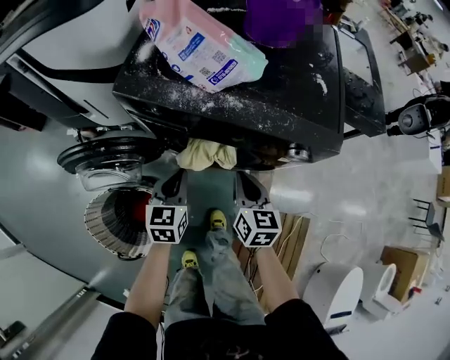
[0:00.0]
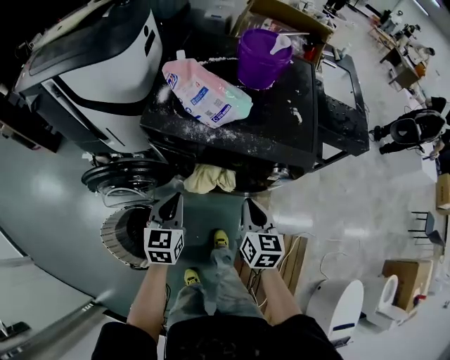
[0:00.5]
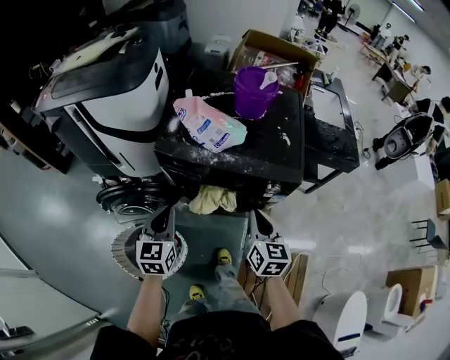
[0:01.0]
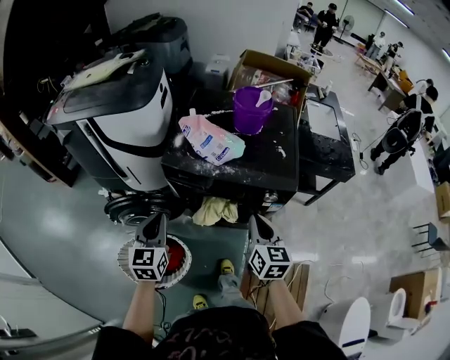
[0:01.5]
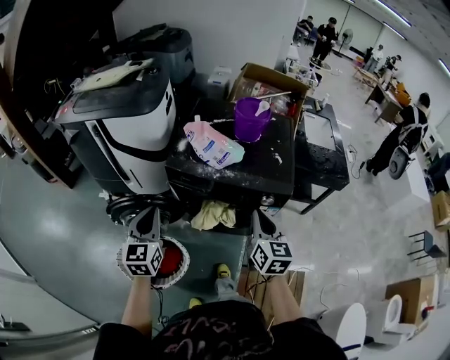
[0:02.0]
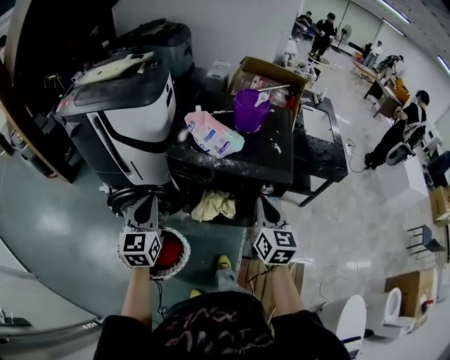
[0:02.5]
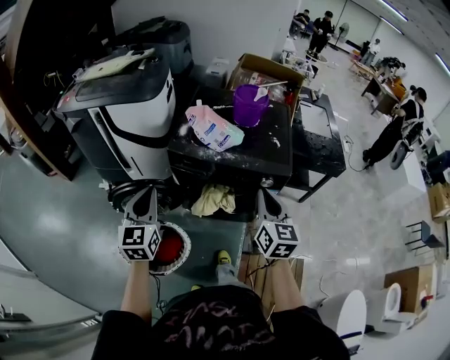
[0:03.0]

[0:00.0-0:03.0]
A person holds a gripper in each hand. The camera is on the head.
0:00.0 to 0:01.5: The grippers both shift upward by approximately 25 cm.
0:01.5 to 0:03.0: Both grippers move upward, about 10 cm.

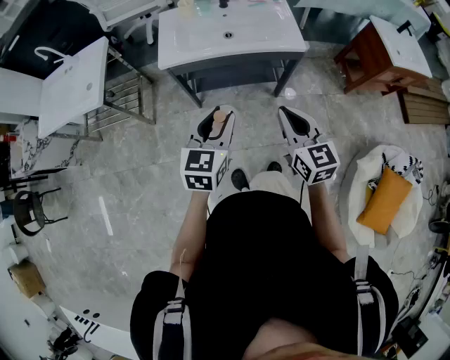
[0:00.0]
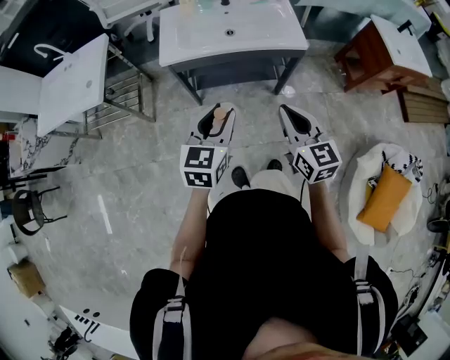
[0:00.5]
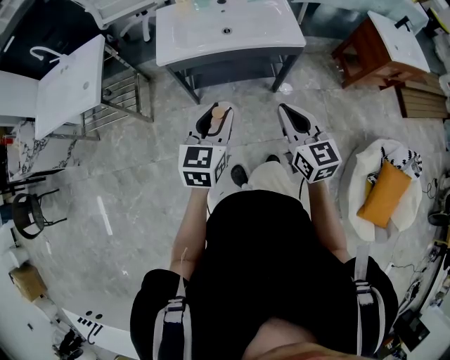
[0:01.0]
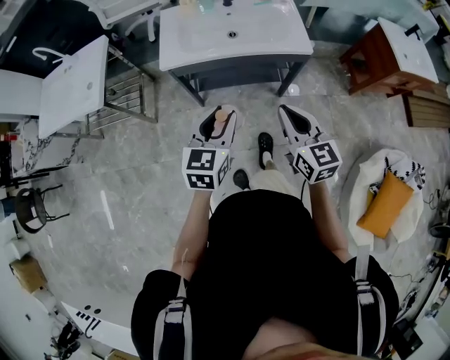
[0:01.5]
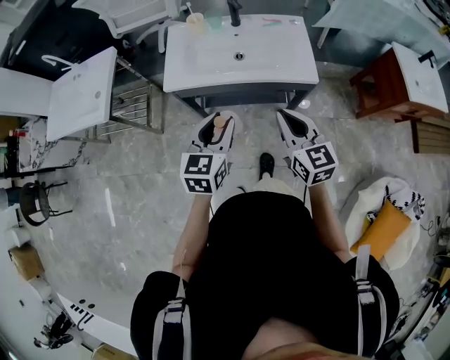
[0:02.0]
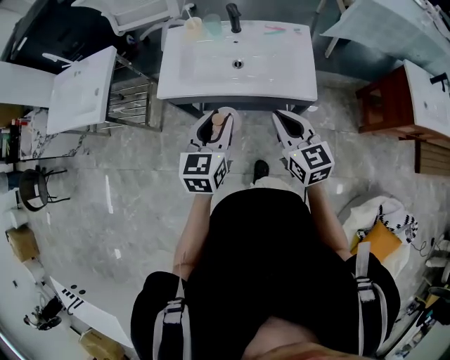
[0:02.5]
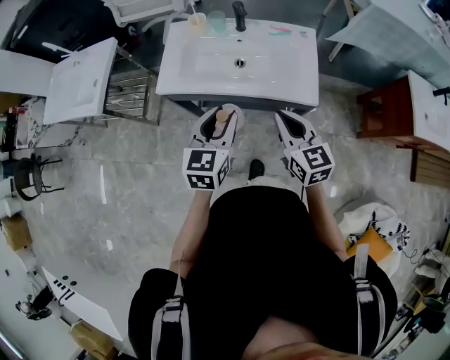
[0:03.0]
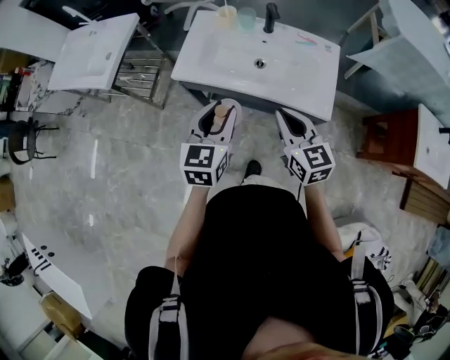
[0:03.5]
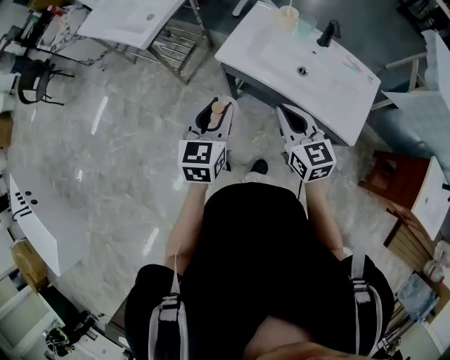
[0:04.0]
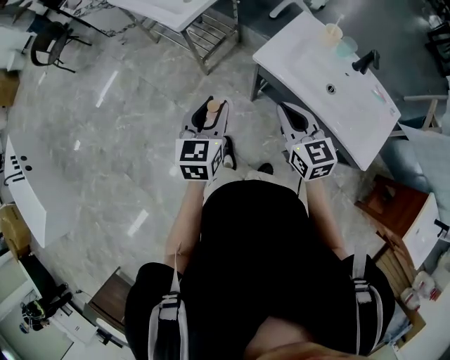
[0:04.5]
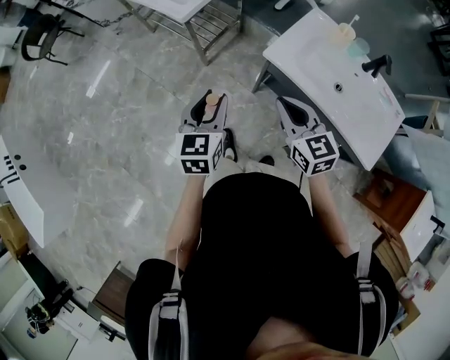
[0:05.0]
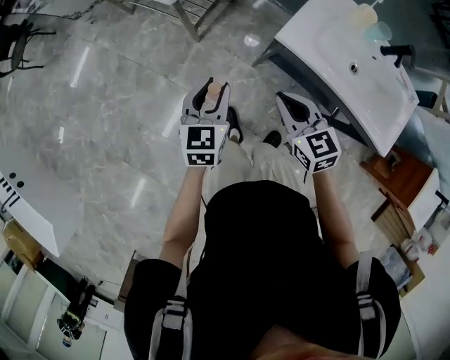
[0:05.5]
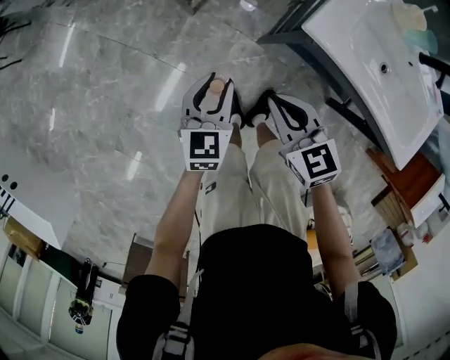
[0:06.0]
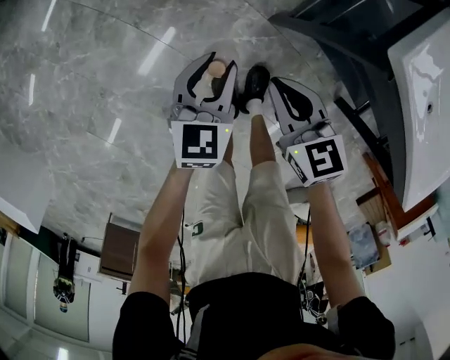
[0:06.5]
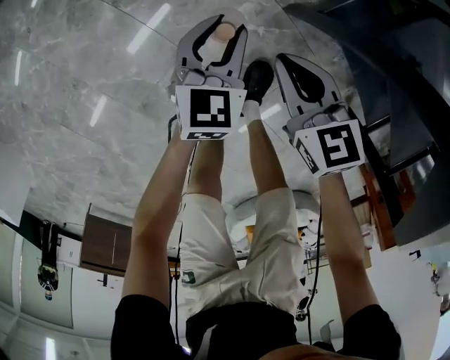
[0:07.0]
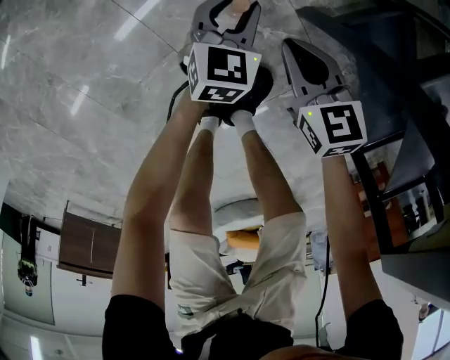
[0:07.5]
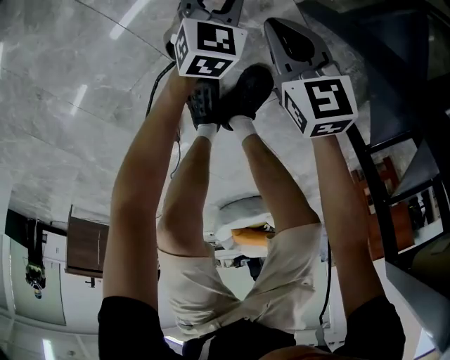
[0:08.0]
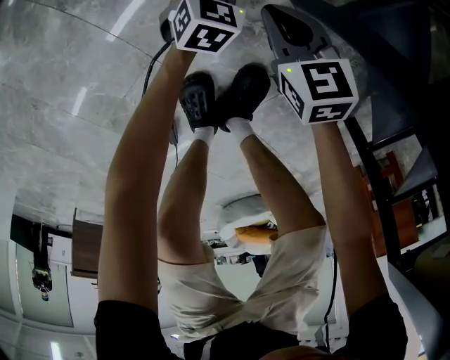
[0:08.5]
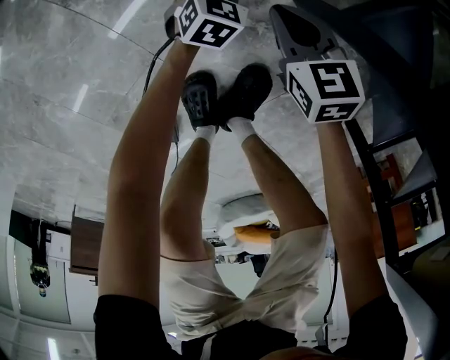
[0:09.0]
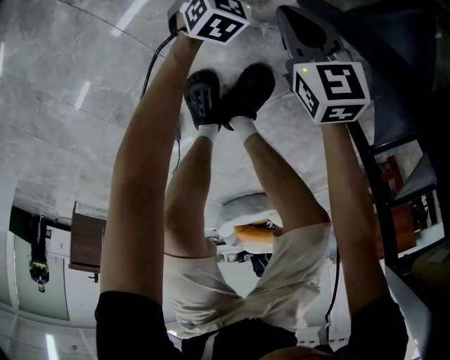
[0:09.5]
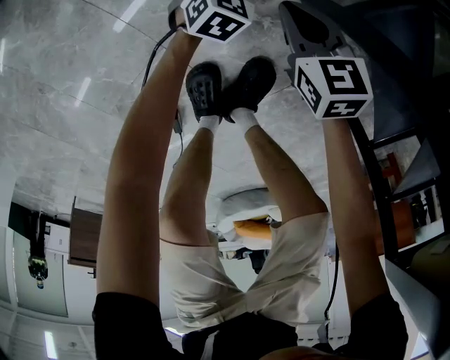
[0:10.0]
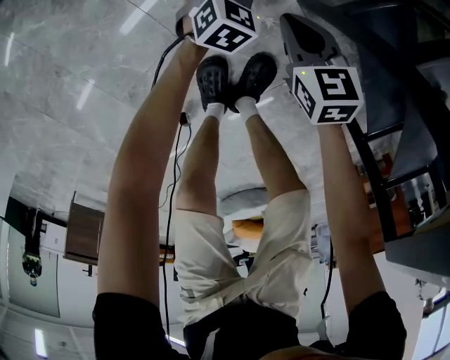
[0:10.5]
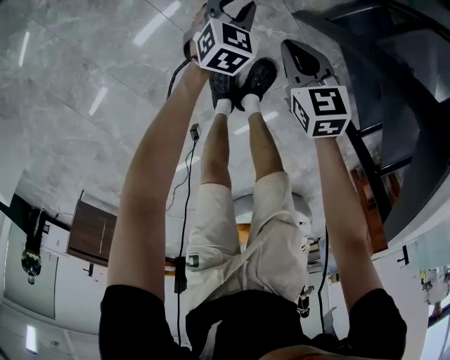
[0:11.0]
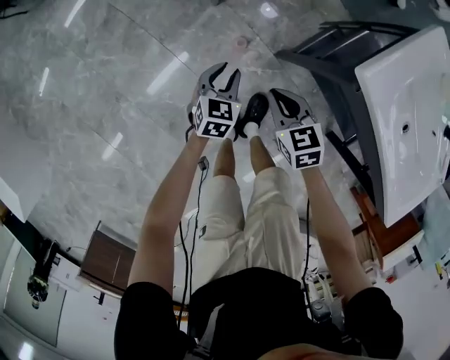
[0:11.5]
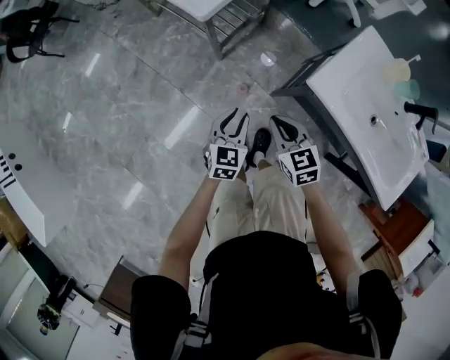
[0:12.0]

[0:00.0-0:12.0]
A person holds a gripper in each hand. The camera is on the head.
0:00.0 to 0:02.0: Both grippers move forward, roughly 15 cm.
0:02.0 to 0:04.0: The right gripper moves about 15 cm, and turns by roughly 30 degrees. The left gripper ends up approximately 15 cm from where it was, and rotates about 30 degrees.
0:04.0 to 0:06.0: The left gripper shifts some 40 cm downward, to the left and forward; the right gripper moves to the left, downward and forward, some 40 cm, and rotates some 30 degrees.
0:06.0 to 0:08.0: The two grippers go roughly 70 cm downward.
0:08.0 to 0:10.0: The left gripper shifts about 5 cm downward.
0:10.0 to 0:12.0: Both grippers travel together upward, roughly 70 cm. The left gripper turns by about 20 degrees.

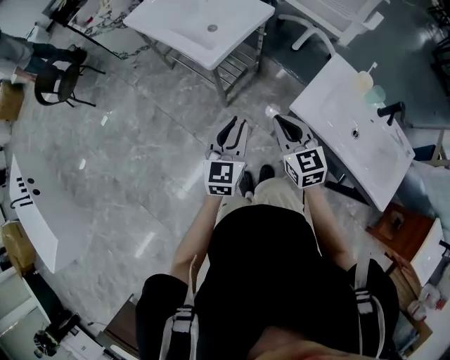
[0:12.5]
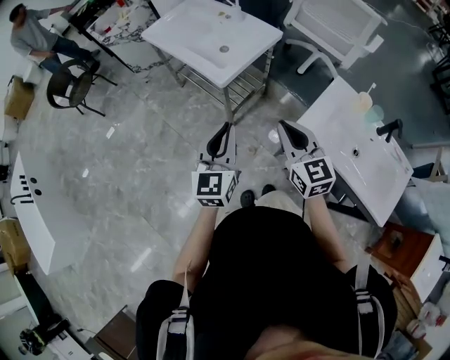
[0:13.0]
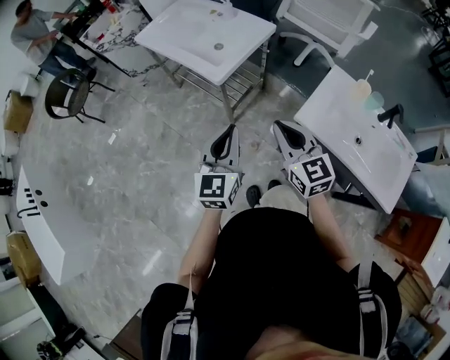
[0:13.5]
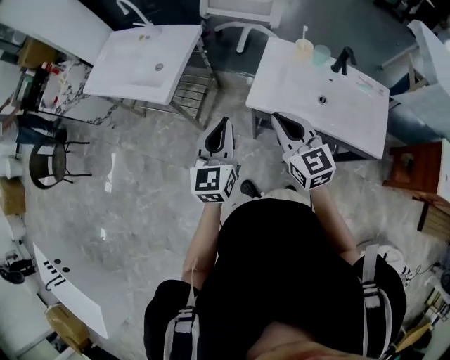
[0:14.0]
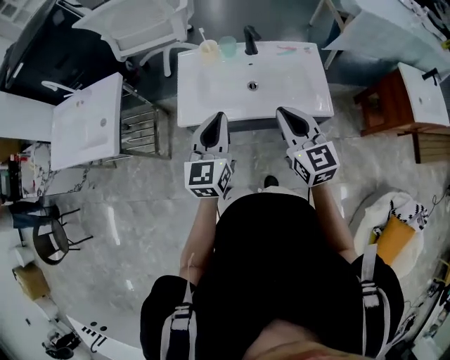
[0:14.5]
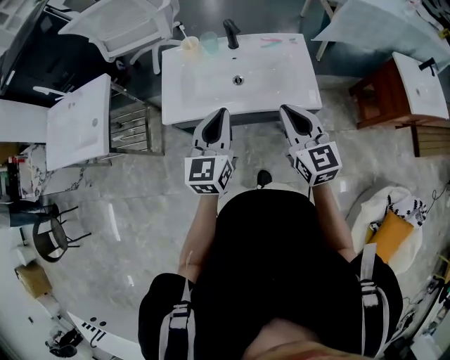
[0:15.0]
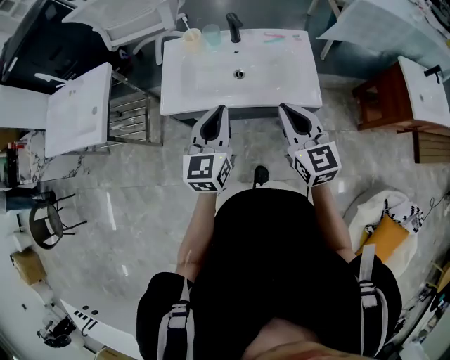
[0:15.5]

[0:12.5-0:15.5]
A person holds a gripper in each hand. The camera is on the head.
0:12.5 to 0:14.0: The right gripper heads to the right and backward, covering about 20 cm, and changes its angle by about 20 degrees, while the left gripper is displaced to the right by about 15 cm.
0:14.0 to 0:15.5: The right gripper moves approximately 35 cm, and swivels about 30 degrees. Meanwhile the left gripper moves roughly 35 cm, and turns by roughly 20 degrees.

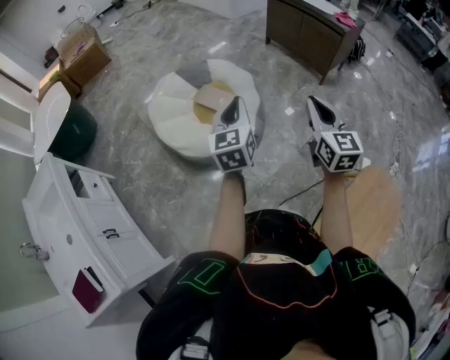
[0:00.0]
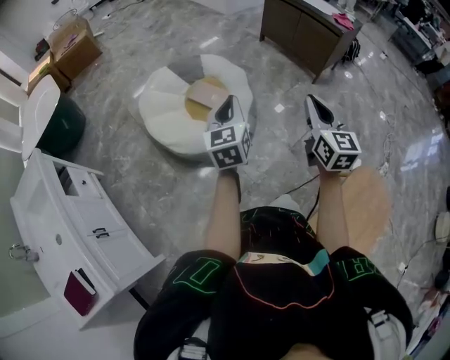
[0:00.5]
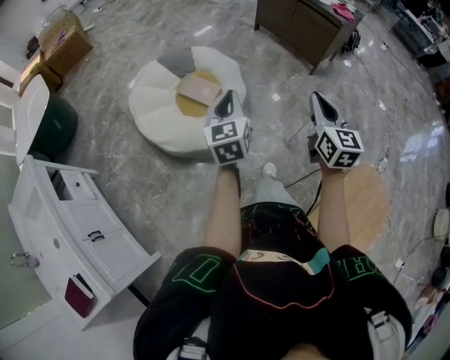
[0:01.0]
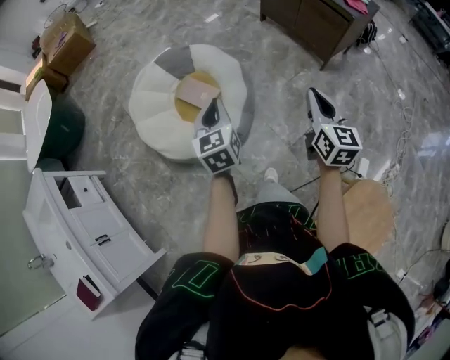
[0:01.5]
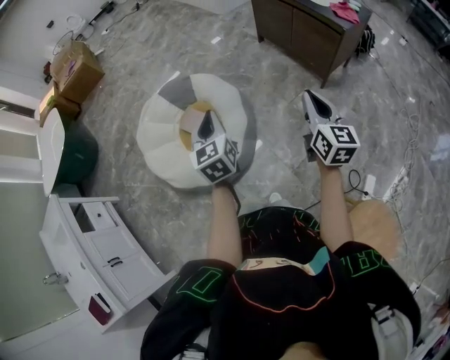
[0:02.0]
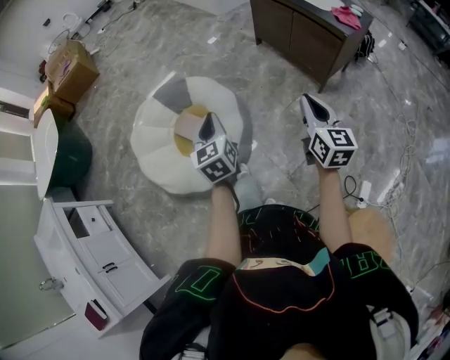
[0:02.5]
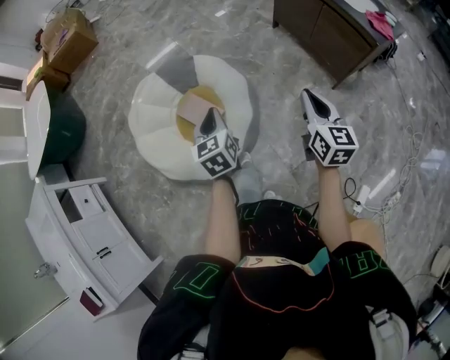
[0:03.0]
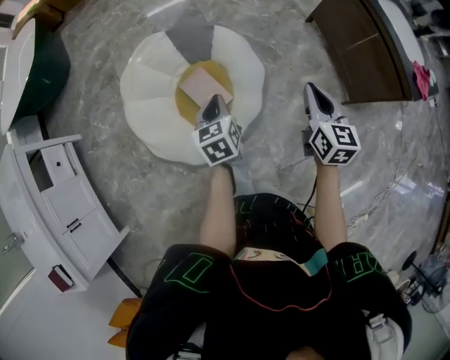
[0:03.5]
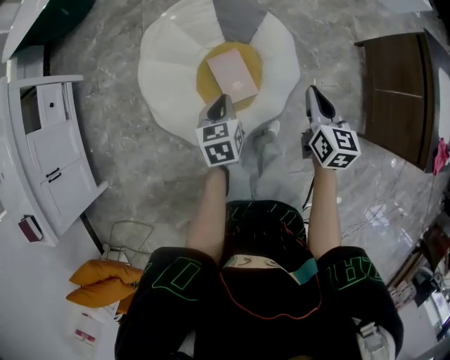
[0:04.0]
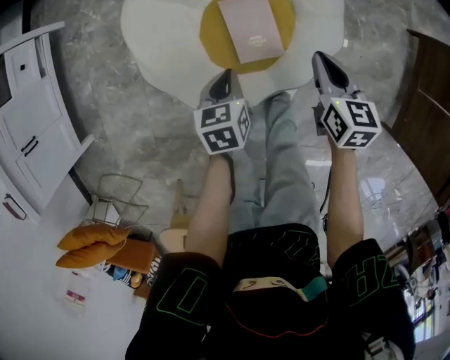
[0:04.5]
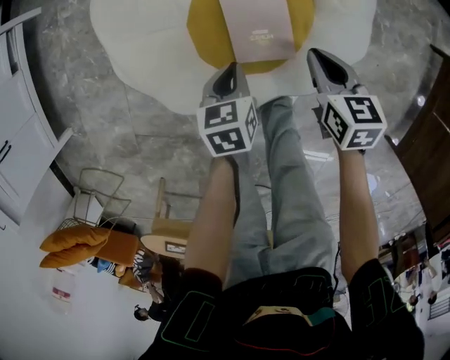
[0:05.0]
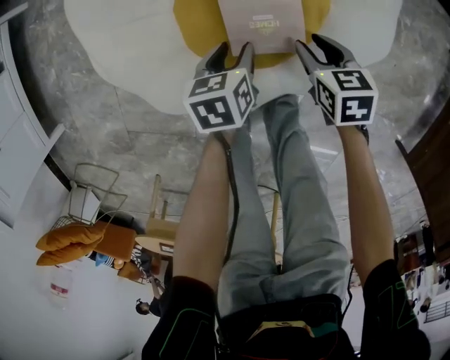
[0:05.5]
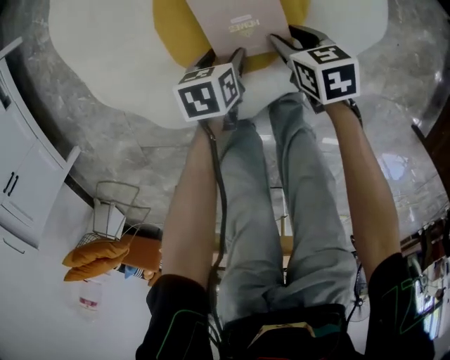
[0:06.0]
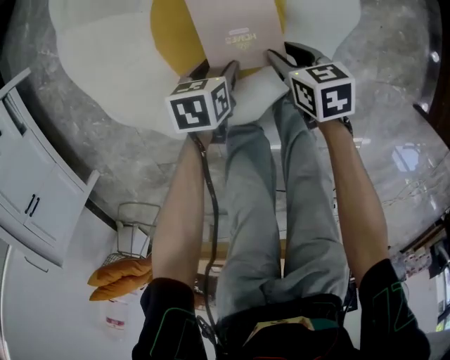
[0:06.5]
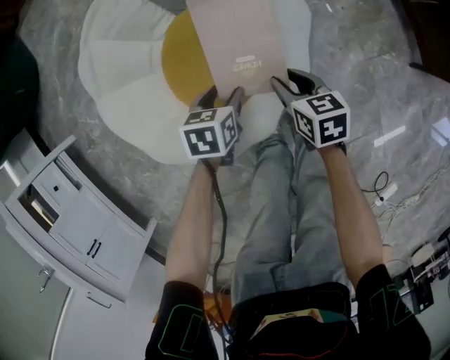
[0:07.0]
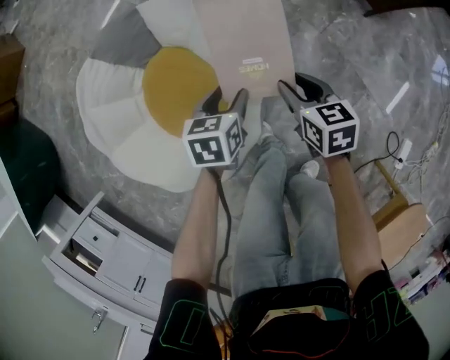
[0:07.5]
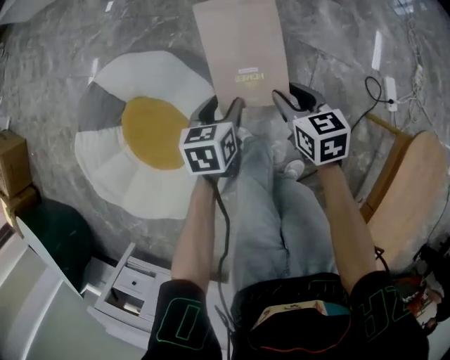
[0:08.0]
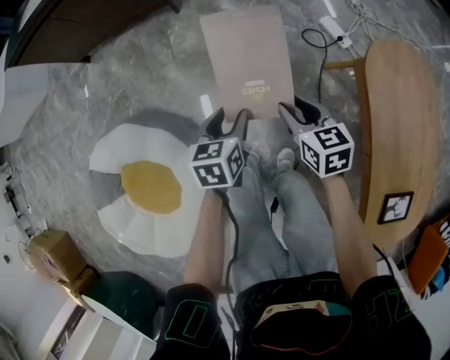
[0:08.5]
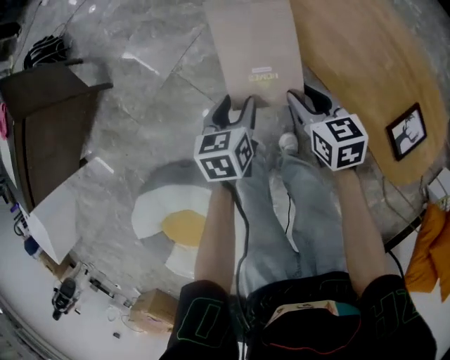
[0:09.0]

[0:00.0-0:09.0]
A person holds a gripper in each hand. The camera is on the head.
0:00.0 to 0:02.0: Both grippers move forward and to the right, about 35 cm.
0:02.0 to 0:04.5: The right gripper shifts by approximately 70 cm, and tips its fingers downward by approximately 30 degrees. Meanwhile the left gripper heads downward, covering approximately 50 cm, and angles its fingers downward, by some 40 degrees.
0:04.5 to 0:07.0: Both grippers travel together downward, some 15 cm. The right gripper turns by approximately 20 degrees, and opens up. The left gripper turns by about 40 degrees, and opens up.
0:07.0 to 0:09.0: The pair of grippers is taken approximately 80 cm. The right gripper changes its angle by roughly 110 degrees. Meanwhile the left gripper turns by about 100 degrees.
